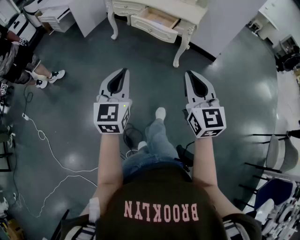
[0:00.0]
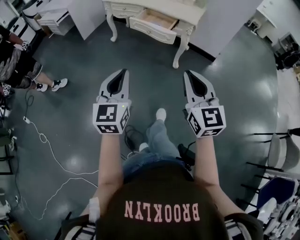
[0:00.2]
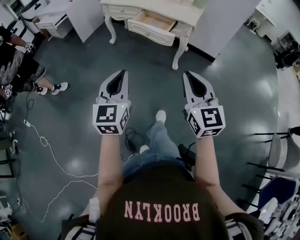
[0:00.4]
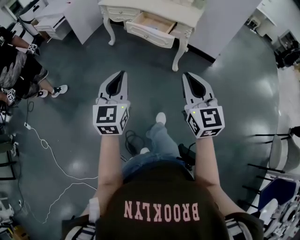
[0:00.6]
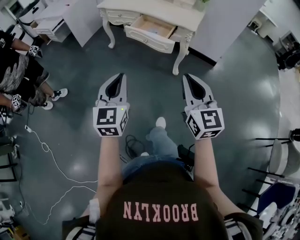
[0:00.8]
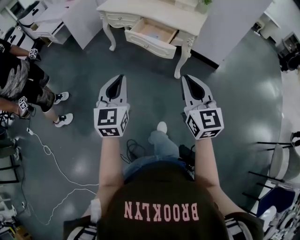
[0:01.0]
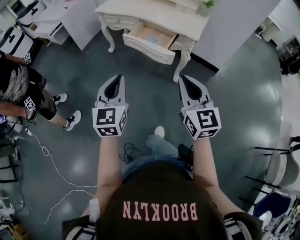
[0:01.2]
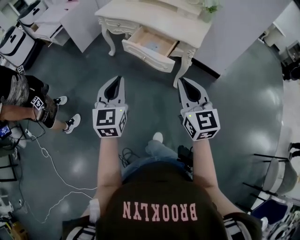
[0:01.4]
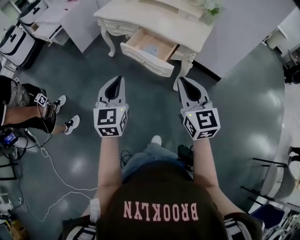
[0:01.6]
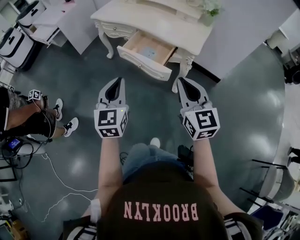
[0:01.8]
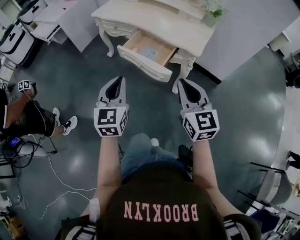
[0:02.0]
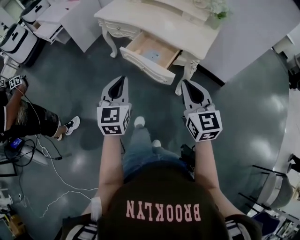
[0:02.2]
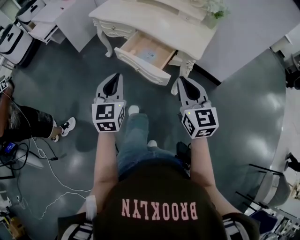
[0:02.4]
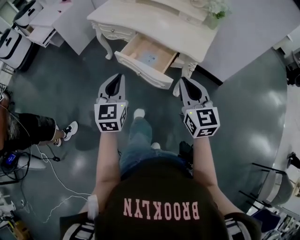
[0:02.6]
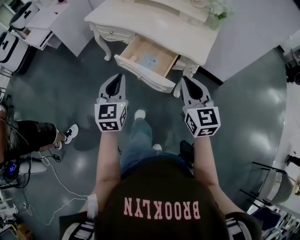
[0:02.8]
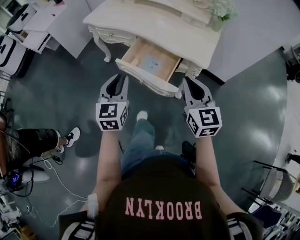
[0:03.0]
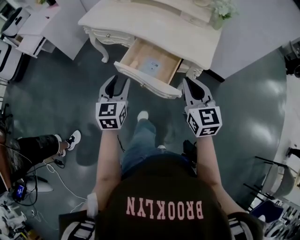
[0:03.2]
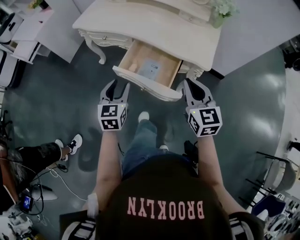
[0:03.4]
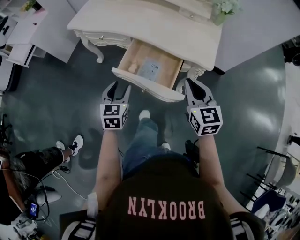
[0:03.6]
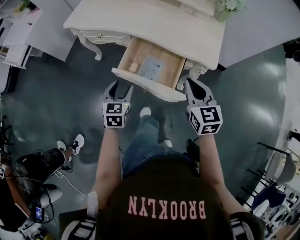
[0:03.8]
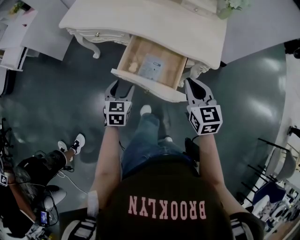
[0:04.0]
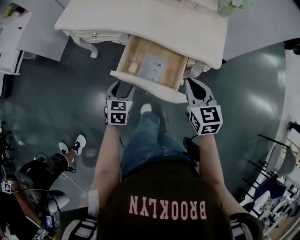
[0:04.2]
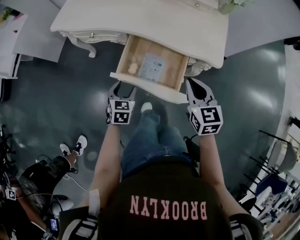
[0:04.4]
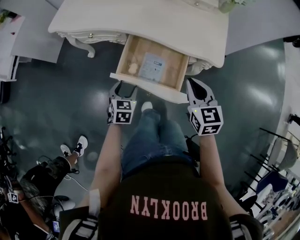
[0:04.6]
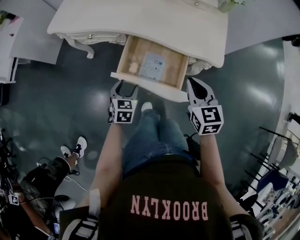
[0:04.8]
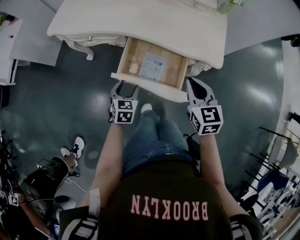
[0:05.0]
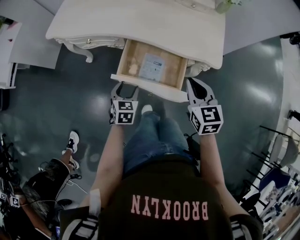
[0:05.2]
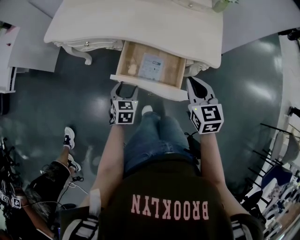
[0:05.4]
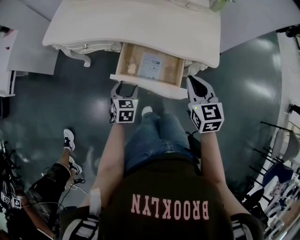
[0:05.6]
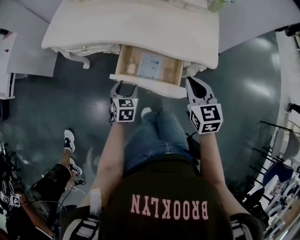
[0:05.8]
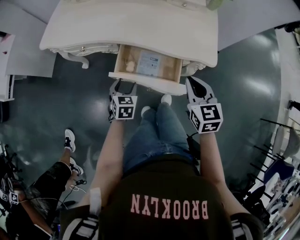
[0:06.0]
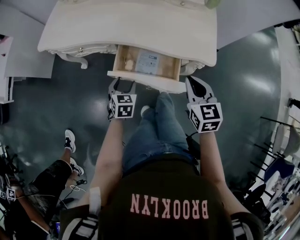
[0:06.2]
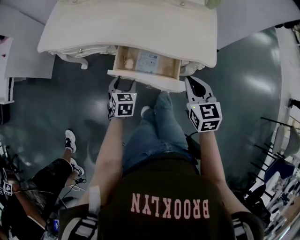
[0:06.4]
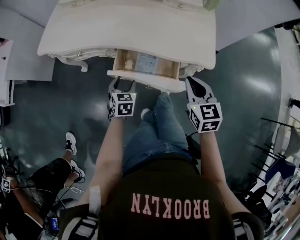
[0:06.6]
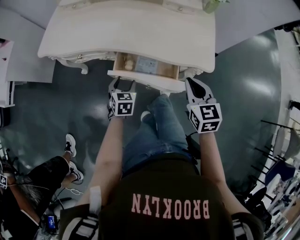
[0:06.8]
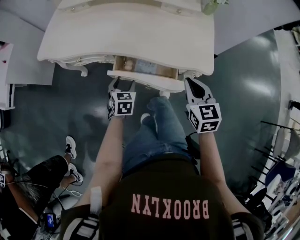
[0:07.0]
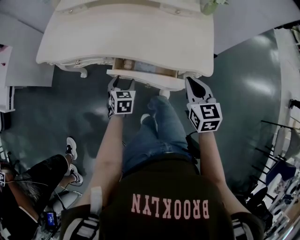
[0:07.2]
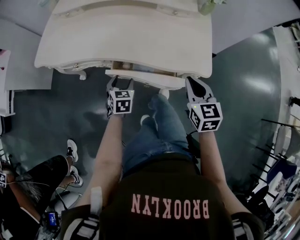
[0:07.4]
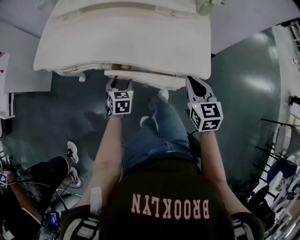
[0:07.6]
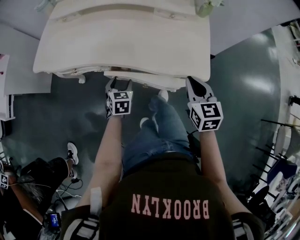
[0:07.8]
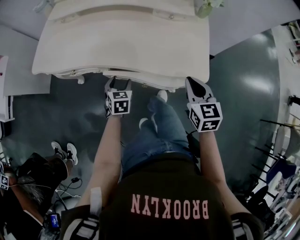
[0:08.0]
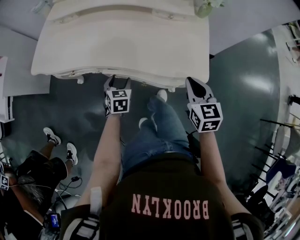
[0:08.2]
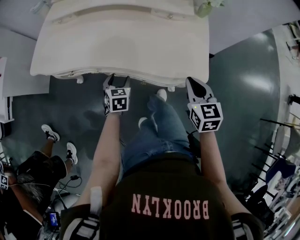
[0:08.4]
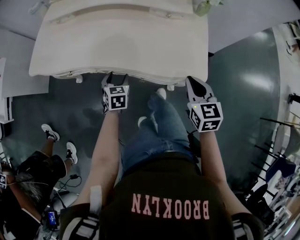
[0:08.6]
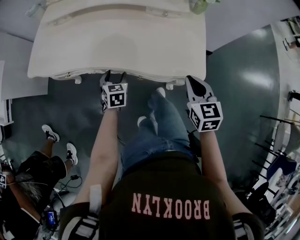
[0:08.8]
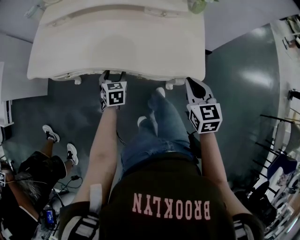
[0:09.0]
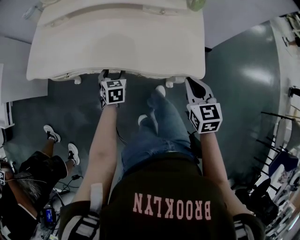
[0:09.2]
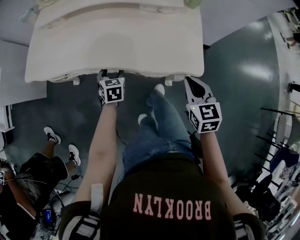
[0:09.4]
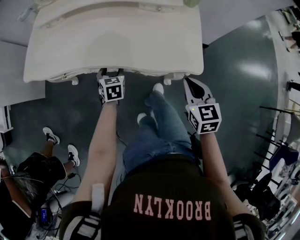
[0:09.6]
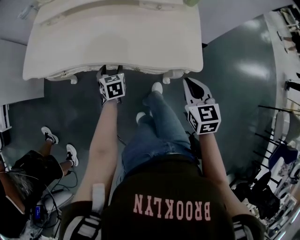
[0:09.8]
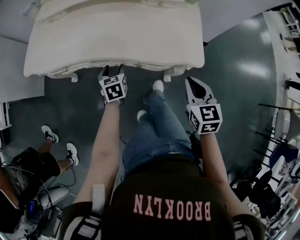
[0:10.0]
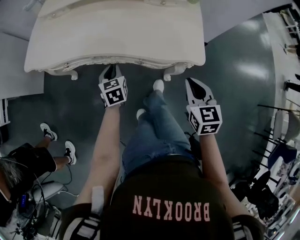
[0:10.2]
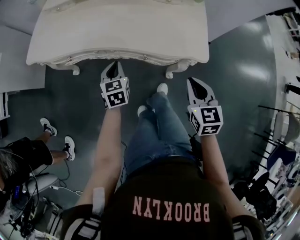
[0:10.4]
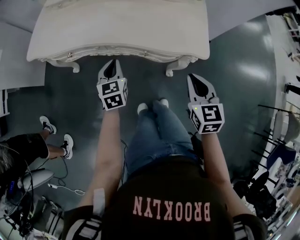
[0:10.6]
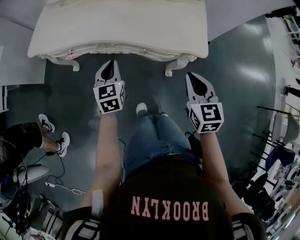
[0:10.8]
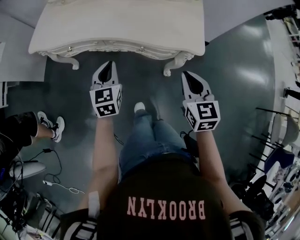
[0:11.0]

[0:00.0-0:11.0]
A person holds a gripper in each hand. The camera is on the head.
0:00.0 to 0:01.6: Both grippers move forward, roughly 30 cm.
0:01.6 to 0:03.2: The grippers both shift forward by roughly 25 cm. The left gripper opens its fingers.
0:03.2 to 0:04.8: The left gripper shifts about 25 cm downward and forward, and changes its angle by about 30 degrees, while the right gripper is displaced downward and forward by about 15 cm, and changes its angle by approximately 20 degrees.
0:04.8 to 0:06.2: The left gripper travels forward by some 5 cm.
0:06.2 to 0:07.8: Both grippers move forward, roughly 10 cm.
0:07.8 to 0:09.4: The left gripper moves forward, roughly 5 cm.
0:09.4 to 0:11.0: The right gripper goes approximately 10 cm backward; the left gripper travels backward and upward by some 20 cm, rotates roughly 20 degrees, and closes its fingers.

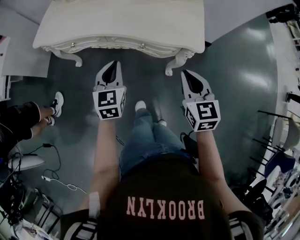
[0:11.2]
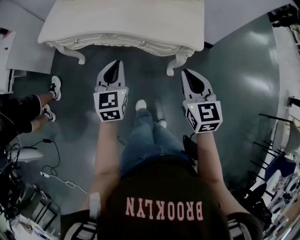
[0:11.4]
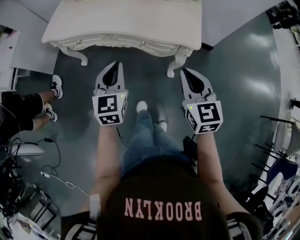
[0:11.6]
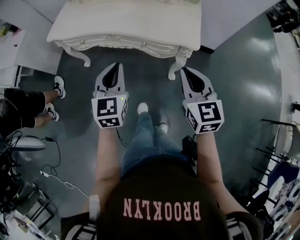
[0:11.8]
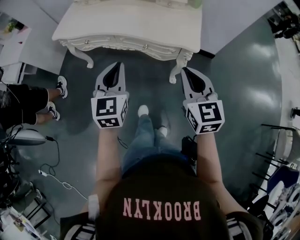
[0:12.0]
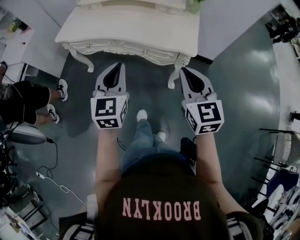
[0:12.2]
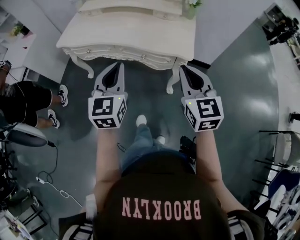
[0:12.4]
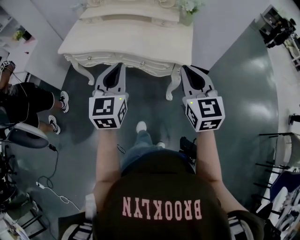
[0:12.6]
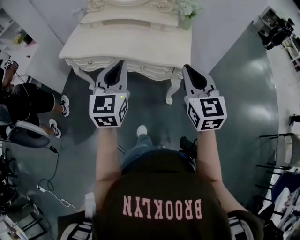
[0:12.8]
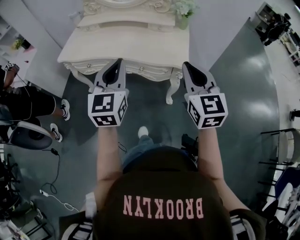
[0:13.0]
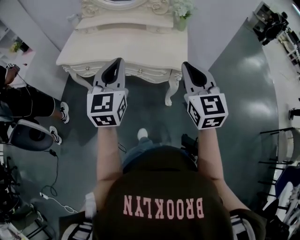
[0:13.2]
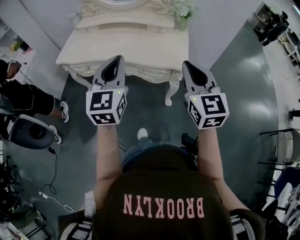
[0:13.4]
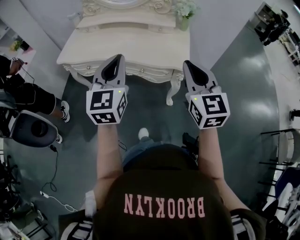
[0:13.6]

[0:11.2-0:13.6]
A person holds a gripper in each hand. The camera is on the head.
0:11.2 to 0:12.4: The grippers both shift upward and backward by roughly 20 cm.
0:12.4 to 0:13.6: Both grippers travel together upward, about 5 cm.

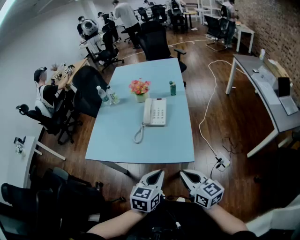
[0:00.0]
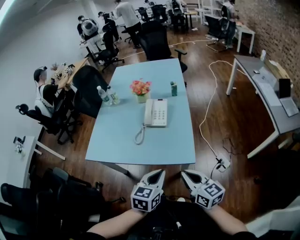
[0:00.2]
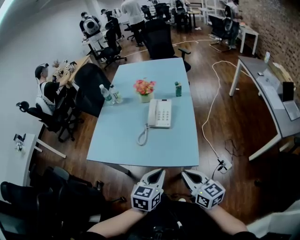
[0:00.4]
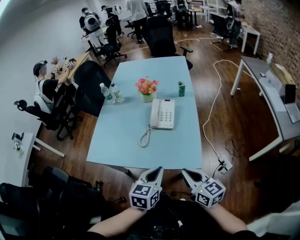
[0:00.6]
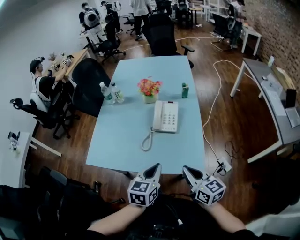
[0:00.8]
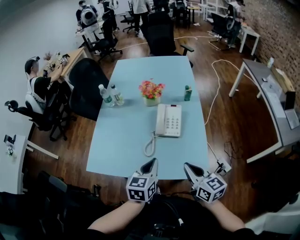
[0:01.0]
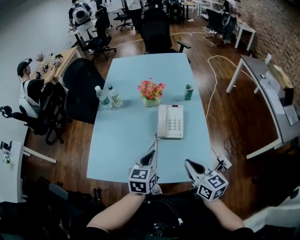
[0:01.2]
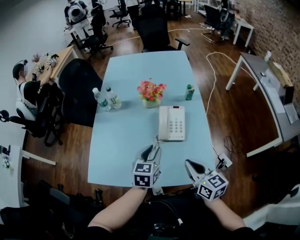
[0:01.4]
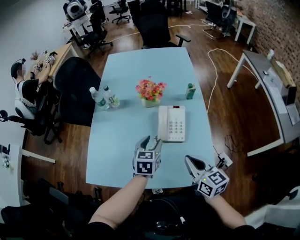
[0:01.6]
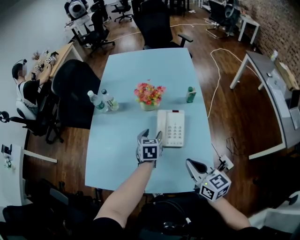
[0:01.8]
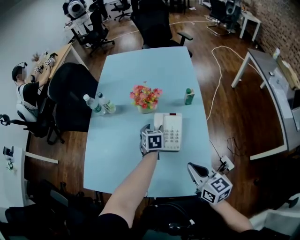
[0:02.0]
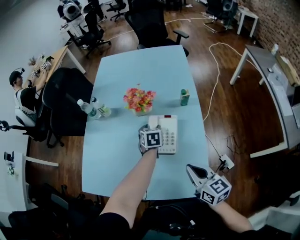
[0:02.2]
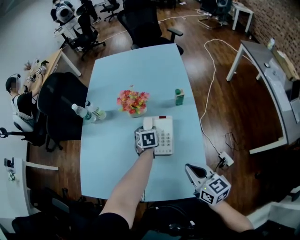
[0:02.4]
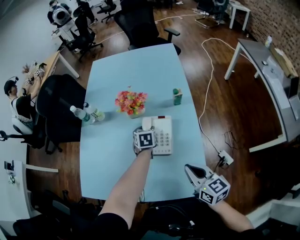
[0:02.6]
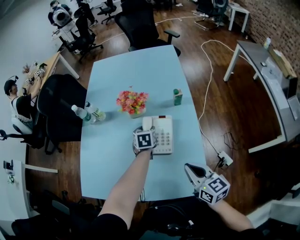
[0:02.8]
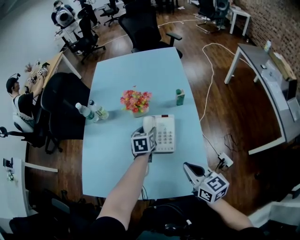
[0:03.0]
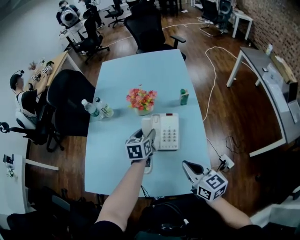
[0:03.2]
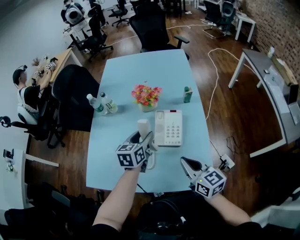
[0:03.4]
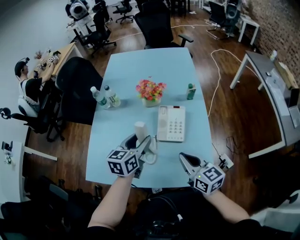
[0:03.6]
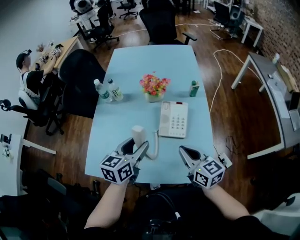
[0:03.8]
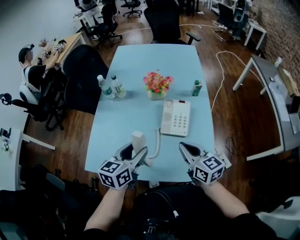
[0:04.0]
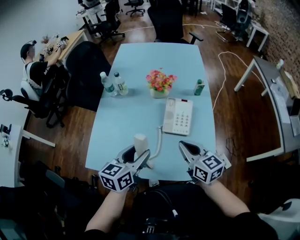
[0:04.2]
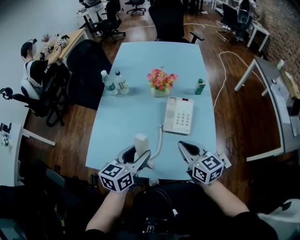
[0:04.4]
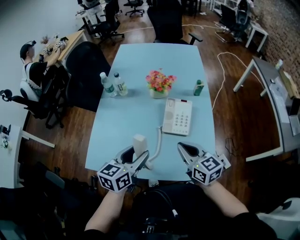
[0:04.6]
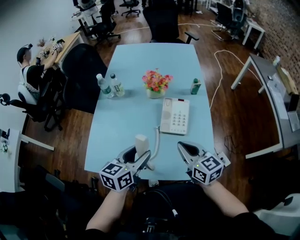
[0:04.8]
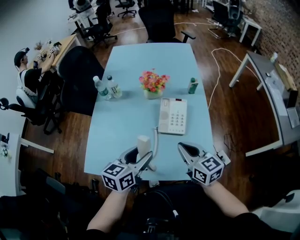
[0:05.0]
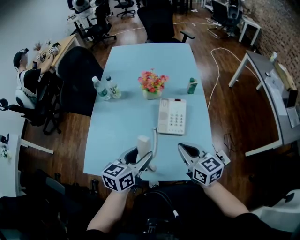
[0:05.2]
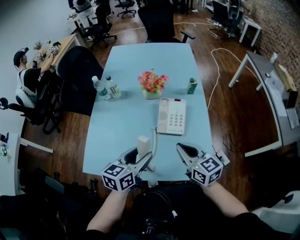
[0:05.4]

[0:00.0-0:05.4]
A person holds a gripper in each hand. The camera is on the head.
0:00.0 to 0:01.4: The two grippers go about 30 cm forward and to the left. The left gripper opens its fingers.
0:01.4 to 0:02.8: The left gripper shifts some 25 cm forward, downward and to the right, rotates roughly 20 degrees, and opens its fingers. Meanwhile the right gripper shifts about 10 cm to the right.
0:02.8 to 0:04.0: The right gripper shifts roughly 10 cm to the left. Meanwhile the left gripper goes roughly 30 cm backward, upward and to the left, and rotates about 30 degrees.
0:04.0 to 0:05.4: There are only small adjustments of the grippers.

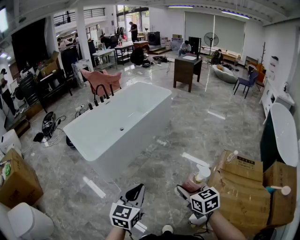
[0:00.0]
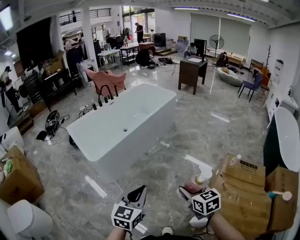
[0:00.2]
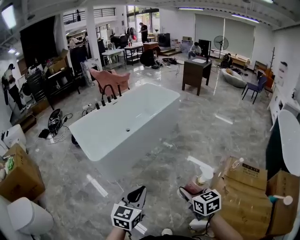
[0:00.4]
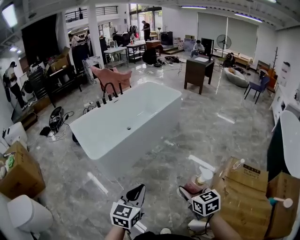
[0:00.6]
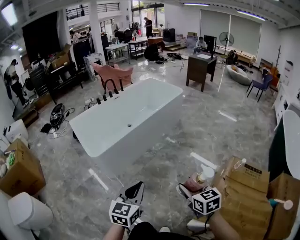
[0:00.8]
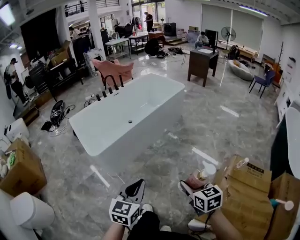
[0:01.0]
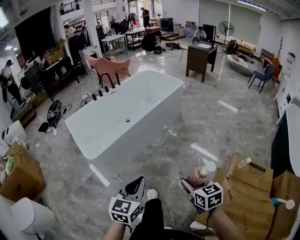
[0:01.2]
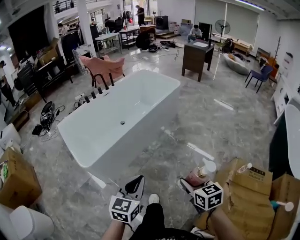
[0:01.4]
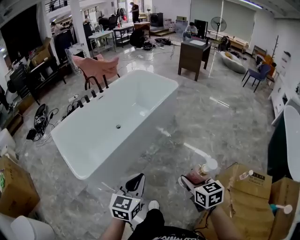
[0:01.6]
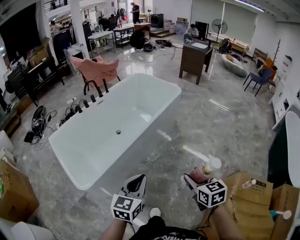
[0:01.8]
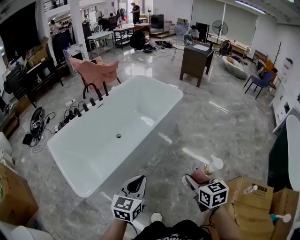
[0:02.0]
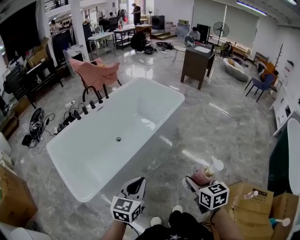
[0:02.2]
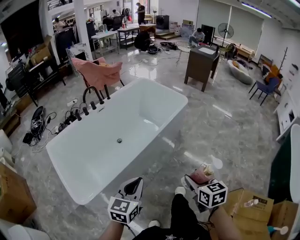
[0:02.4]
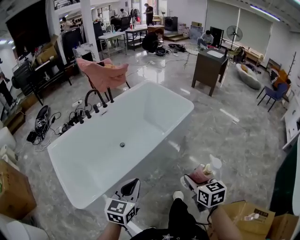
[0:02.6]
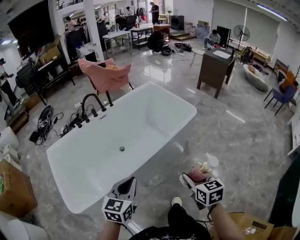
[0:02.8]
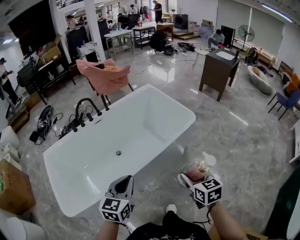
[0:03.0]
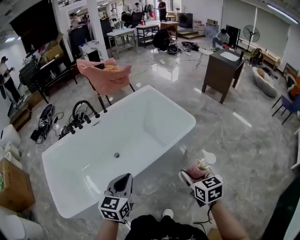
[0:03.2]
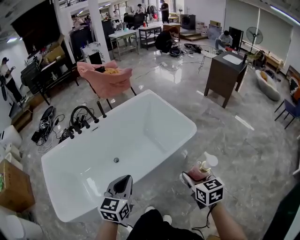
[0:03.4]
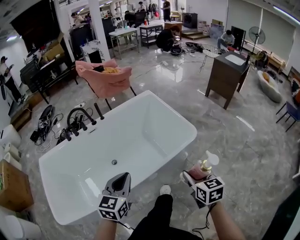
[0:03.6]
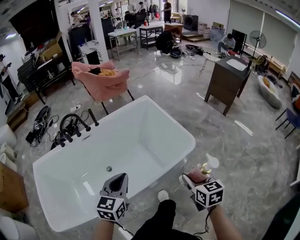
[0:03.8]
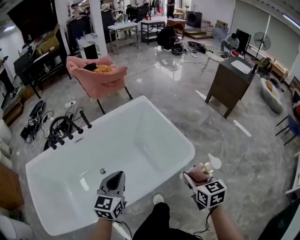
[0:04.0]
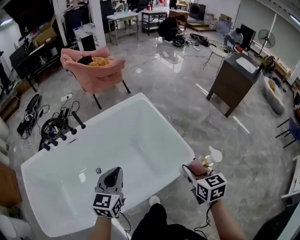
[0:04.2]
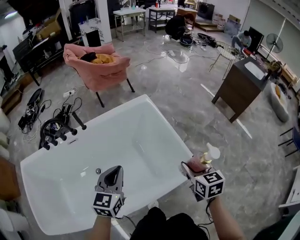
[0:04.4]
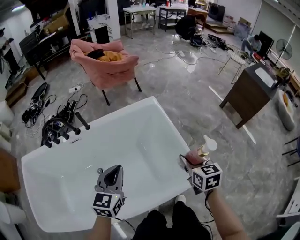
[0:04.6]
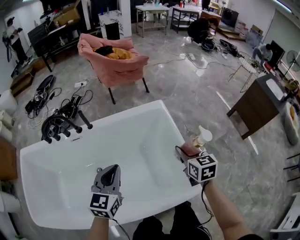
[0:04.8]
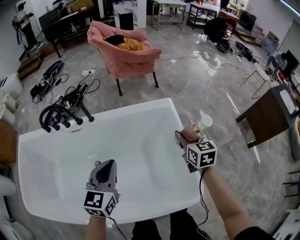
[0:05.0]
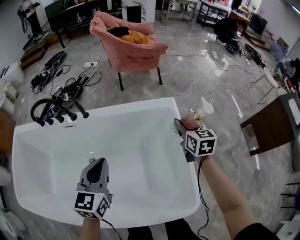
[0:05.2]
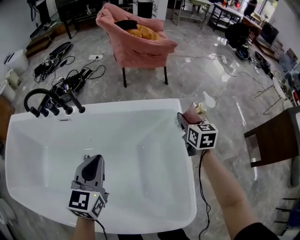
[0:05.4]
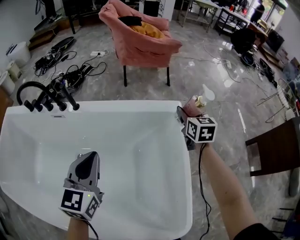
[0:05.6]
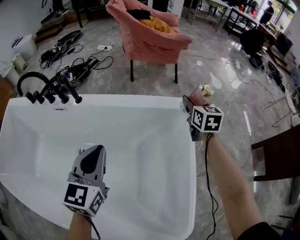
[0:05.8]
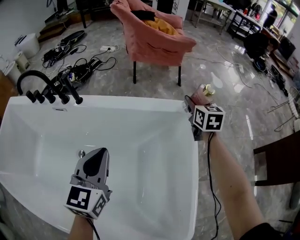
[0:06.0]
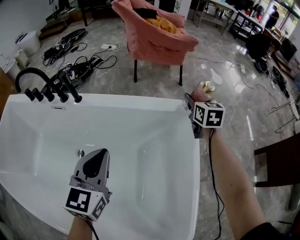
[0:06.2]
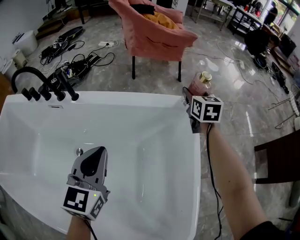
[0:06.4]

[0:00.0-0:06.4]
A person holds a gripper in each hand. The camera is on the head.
0:00.0 to 0:01.6: Both grippers move forward, roughly 35 cm.
0:01.6 to 0:03.2: The two grippers travel together, forward, about 60 cm. The left gripper changes its angle by approximately 20 degrees.
0:03.2 to 0:04.8: Both grippers are carried forward, roughly 60 cm. The left gripper swivels some 20 degrees.
0:04.8 to 0:06.4: The right gripper shifts roughly 50 cm forward and downward, while the left gripper goes some 30 cm forward and downward, and changes its angle by about 20 degrees.
